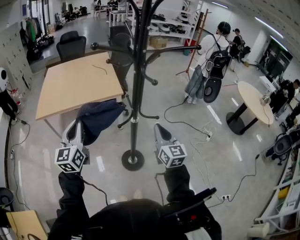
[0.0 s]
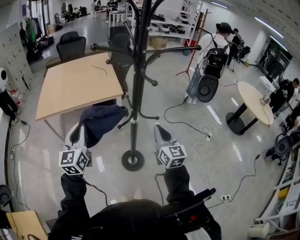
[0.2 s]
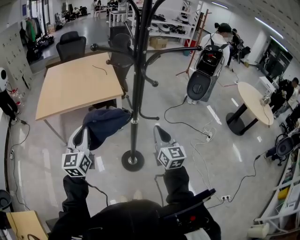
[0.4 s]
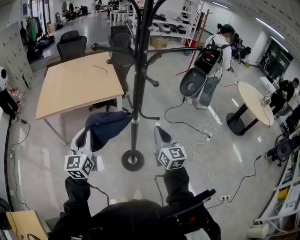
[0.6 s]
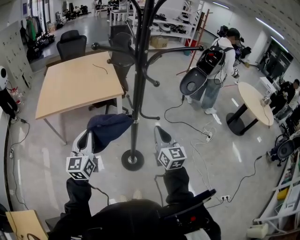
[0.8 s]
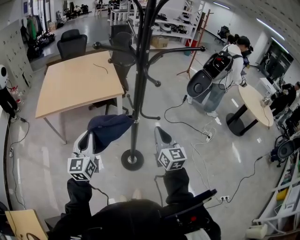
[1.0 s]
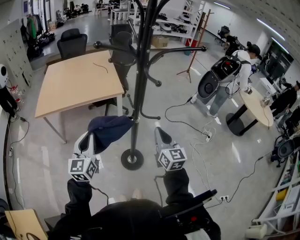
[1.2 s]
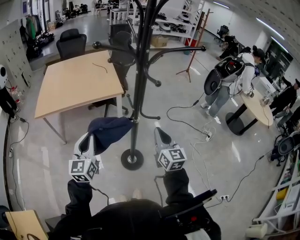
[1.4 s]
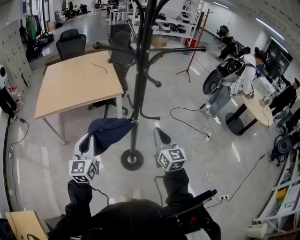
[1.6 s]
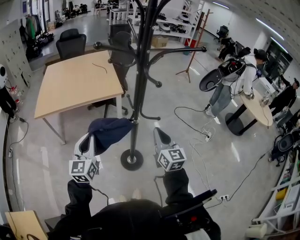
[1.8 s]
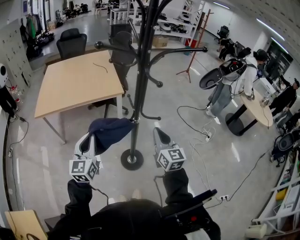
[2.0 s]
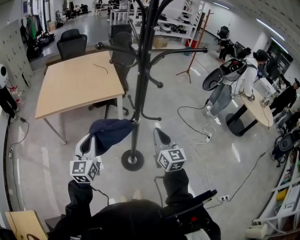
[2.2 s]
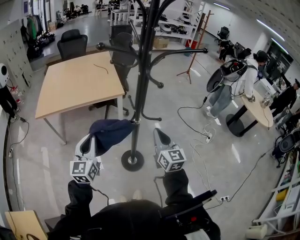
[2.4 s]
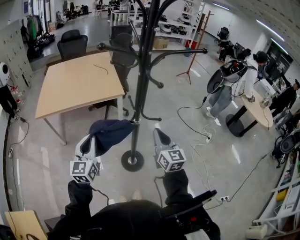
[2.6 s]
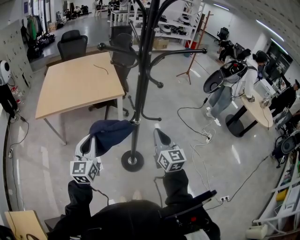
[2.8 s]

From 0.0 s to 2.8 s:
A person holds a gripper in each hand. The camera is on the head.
From 0.0 s to 1.4 s: The left gripper shifts approximately 5 cm downward.
From 1.4 s to 2.8 s: The two grippers keep their place.

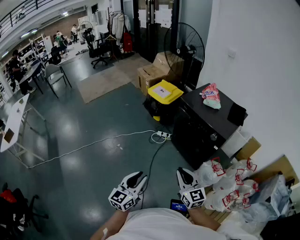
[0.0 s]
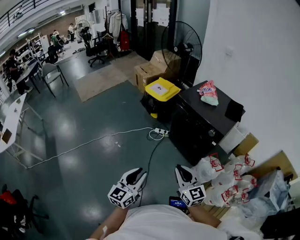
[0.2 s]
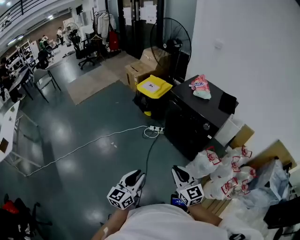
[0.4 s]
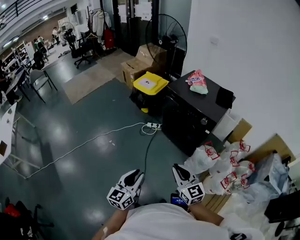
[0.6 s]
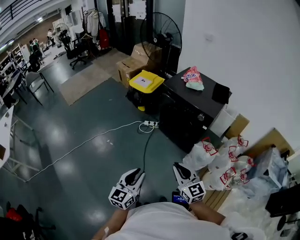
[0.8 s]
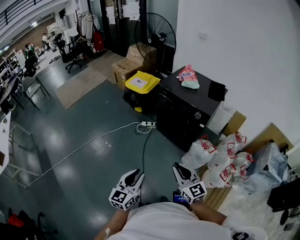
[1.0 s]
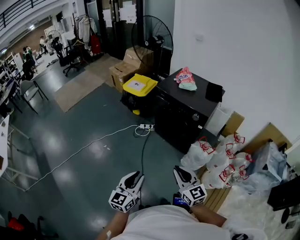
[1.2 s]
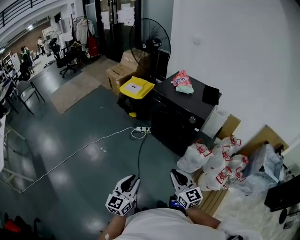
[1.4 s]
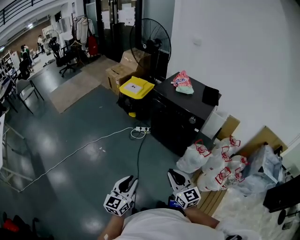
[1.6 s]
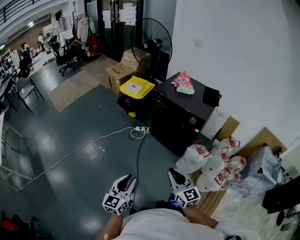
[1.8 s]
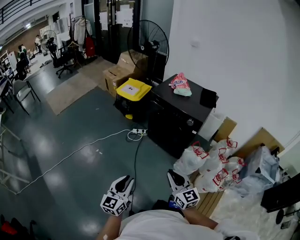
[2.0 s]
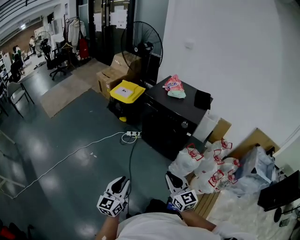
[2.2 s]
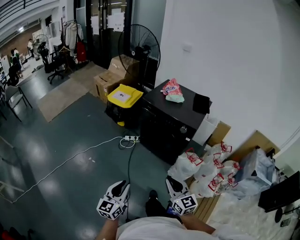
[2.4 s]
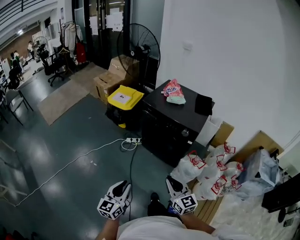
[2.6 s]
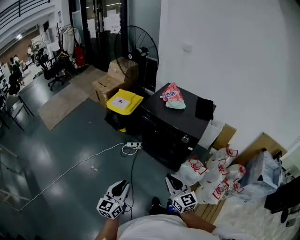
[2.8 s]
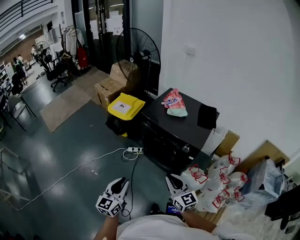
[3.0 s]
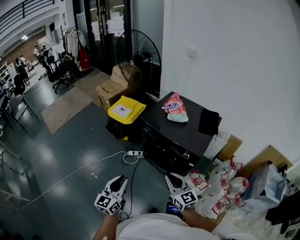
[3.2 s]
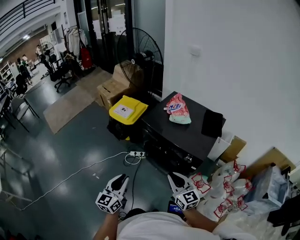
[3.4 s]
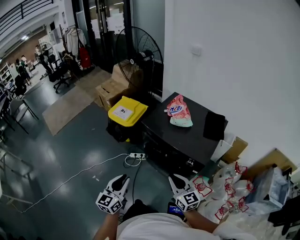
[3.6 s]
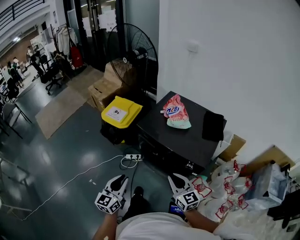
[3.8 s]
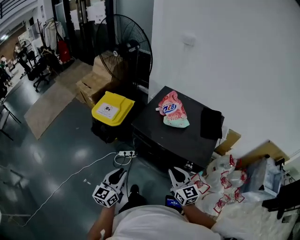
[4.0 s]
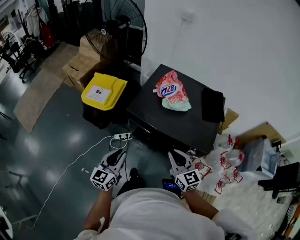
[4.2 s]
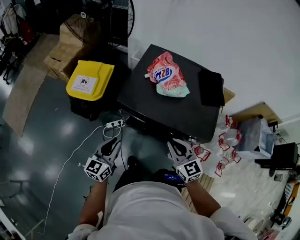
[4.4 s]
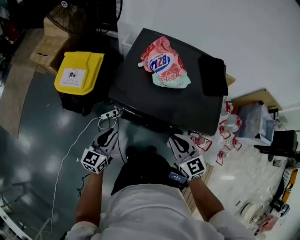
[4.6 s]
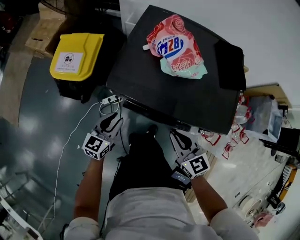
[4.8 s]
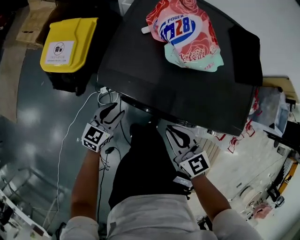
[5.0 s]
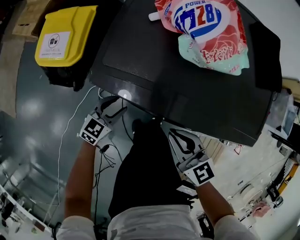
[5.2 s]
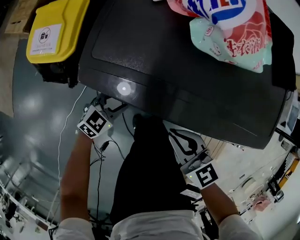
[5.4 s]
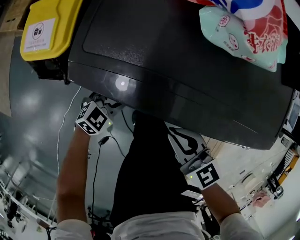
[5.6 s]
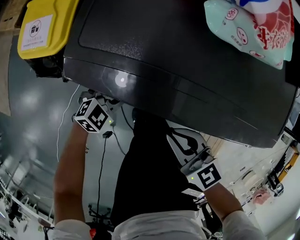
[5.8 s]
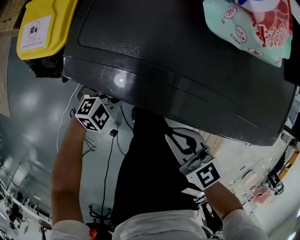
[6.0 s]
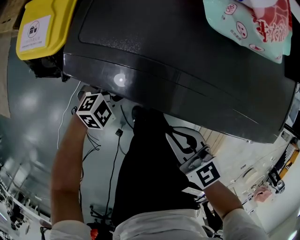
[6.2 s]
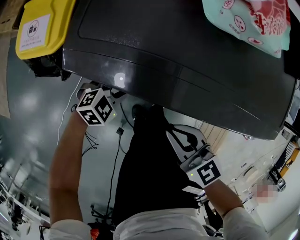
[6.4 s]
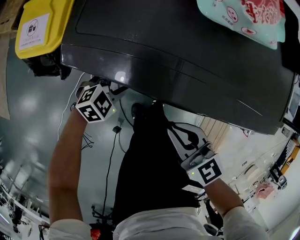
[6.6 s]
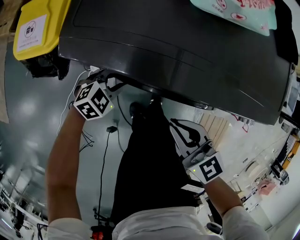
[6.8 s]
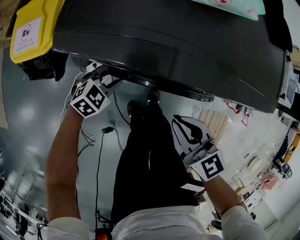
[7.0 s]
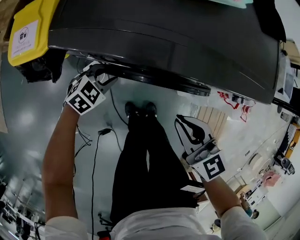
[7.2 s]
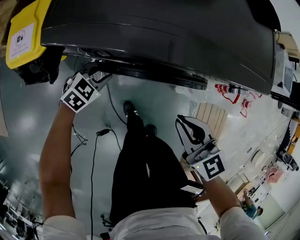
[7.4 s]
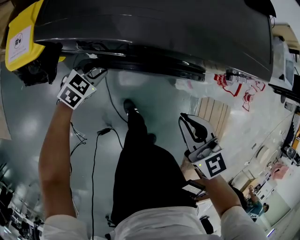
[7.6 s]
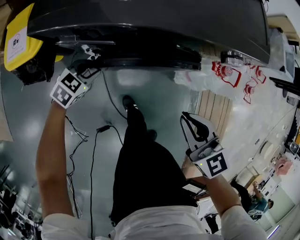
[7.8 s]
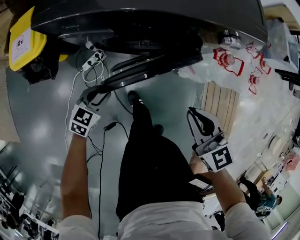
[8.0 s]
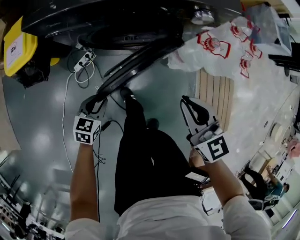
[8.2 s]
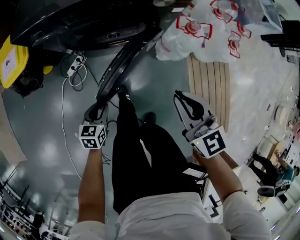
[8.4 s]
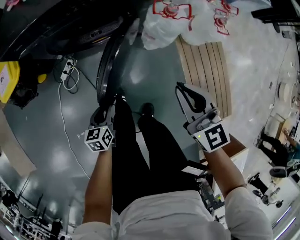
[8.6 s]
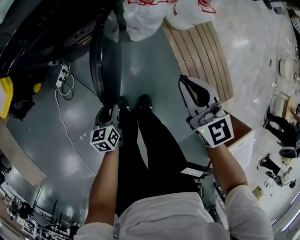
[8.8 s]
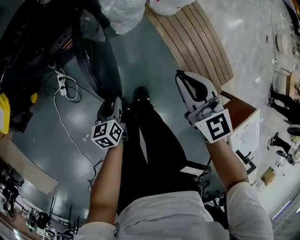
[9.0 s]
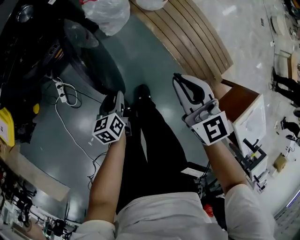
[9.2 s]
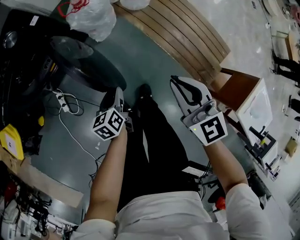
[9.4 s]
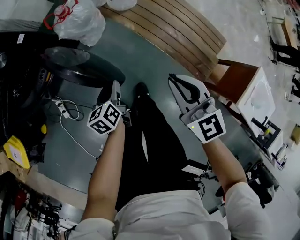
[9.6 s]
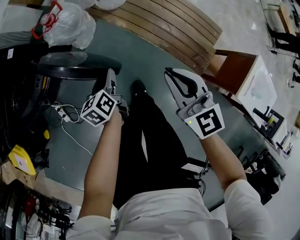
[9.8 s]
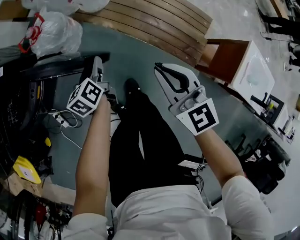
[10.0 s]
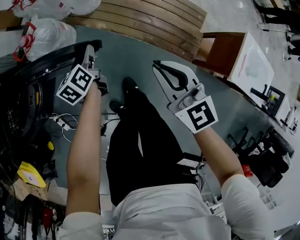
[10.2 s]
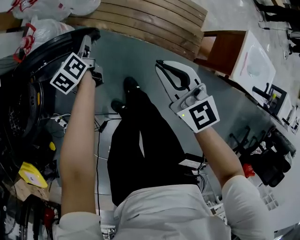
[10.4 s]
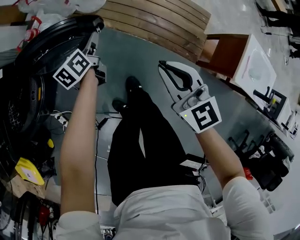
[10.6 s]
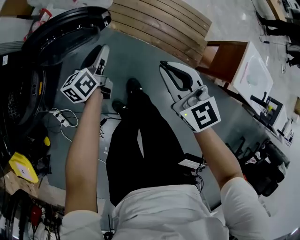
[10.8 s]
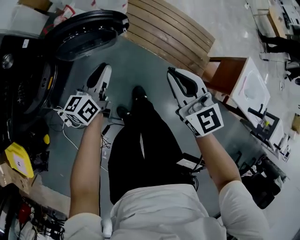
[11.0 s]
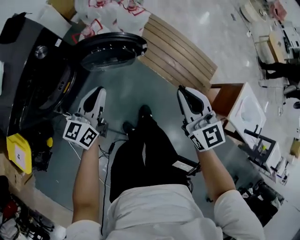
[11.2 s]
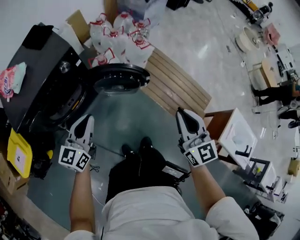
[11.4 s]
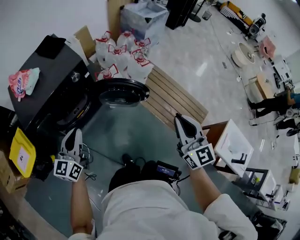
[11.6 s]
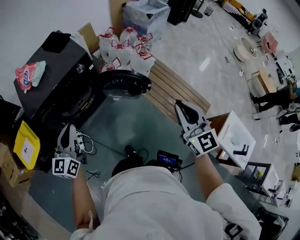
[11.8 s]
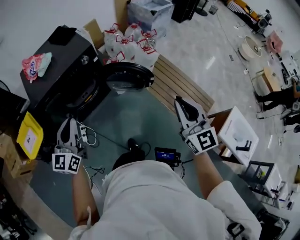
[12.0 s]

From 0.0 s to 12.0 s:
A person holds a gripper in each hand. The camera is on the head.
From 0.0 s to 1.6 s: The left gripper moves approximately 5 cm; the right gripper is displaced backward by some 10 cm.
From 1.6 s to 3.0 s: The grippers both shift forward by approximately 25 cm.
From 3.0 s to 4.4 s: The grippers both shift forward by about 35 cm. The left gripper swivels approximately 20 degrees.
From 4.4 s to 6.0 s: The left gripper heads downward, covering some 35 cm, and tilts its fingers roughly 30 degrees downward, while the right gripper heads downward, covering approximately 25 cm.
From 6.0 s to 7.6 s: The right gripper goes about 15 cm to the right and backward, and swivels some 20 degrees.
From 7.6 s to 9.0 s: Both grippers are carried to the right and backward, roughly 40 cm. The left gripper rotates some 40 degrees; the right gripper changes its angle by roughly 40 degrees.
From 9.0 s to 10.4 s: The left gripper changes place by roughly 35 cm, and rotates about 30 degrees; the right gripper moves about 25 cm, and changes its angle by some 30 degrees.
From 10.4 s to 12.0 s: The left gripper goes roughly 70 cm upward, backward and to the left, tips its fingers upward by roughly 30 degrees, and closes up; the right gripper travels upward and backward by roughly 40 cm, and changes its angle by some 30 degrees.

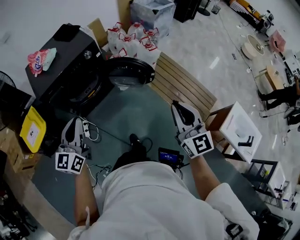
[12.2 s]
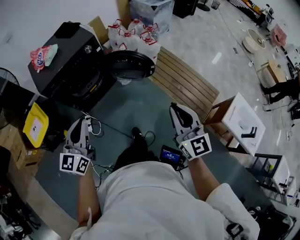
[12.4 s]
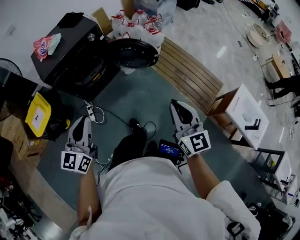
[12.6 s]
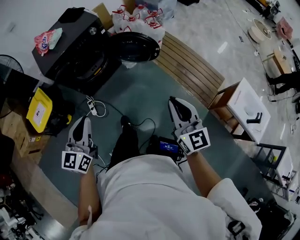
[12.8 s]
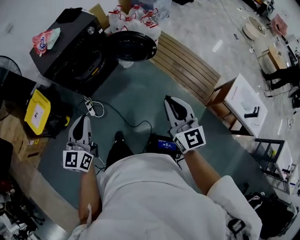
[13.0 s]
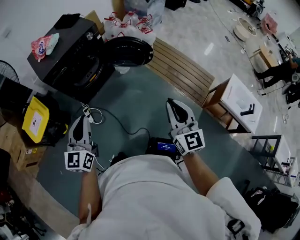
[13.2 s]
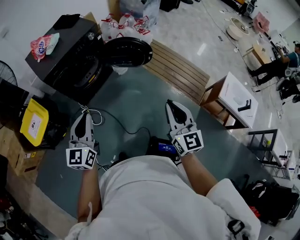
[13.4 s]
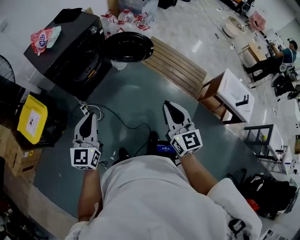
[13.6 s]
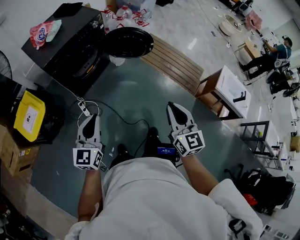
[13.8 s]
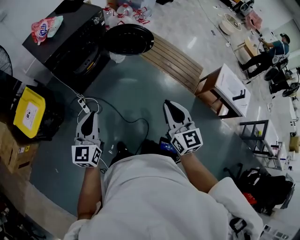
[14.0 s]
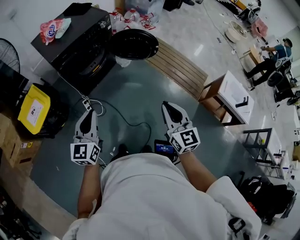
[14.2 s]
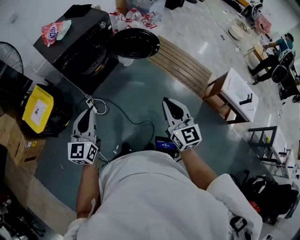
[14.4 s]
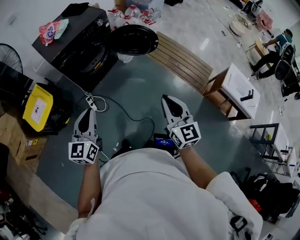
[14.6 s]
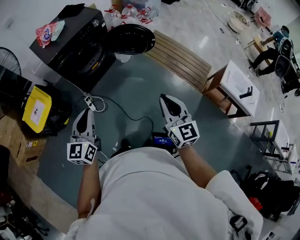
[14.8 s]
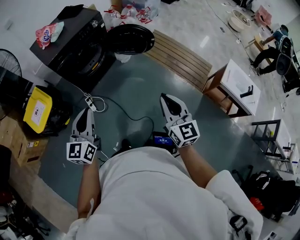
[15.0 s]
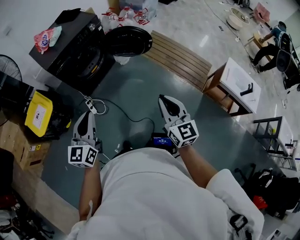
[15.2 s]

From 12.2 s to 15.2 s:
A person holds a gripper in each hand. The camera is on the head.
From 12.2 s to 13.8 s: Both grippers travel together backward and to the left, about 30 cm.
From 13.8 s to 15.2 s: The left gripper moves about 10 cm. Meanwhile the right gripper shifts by about 5 cm.

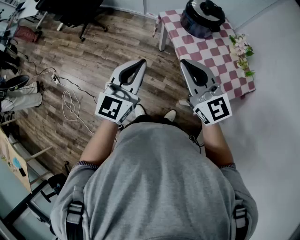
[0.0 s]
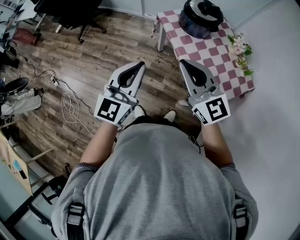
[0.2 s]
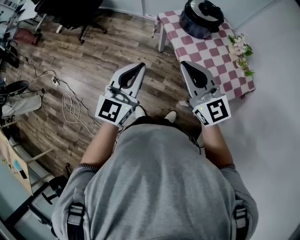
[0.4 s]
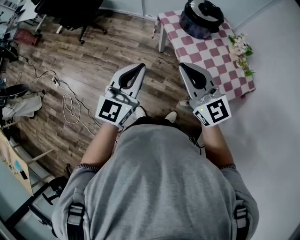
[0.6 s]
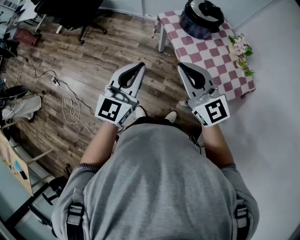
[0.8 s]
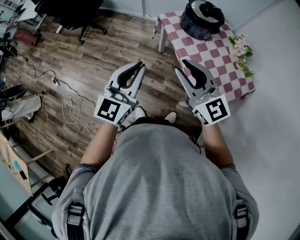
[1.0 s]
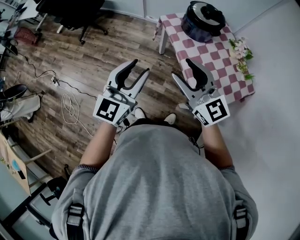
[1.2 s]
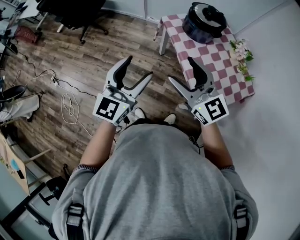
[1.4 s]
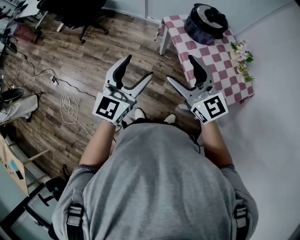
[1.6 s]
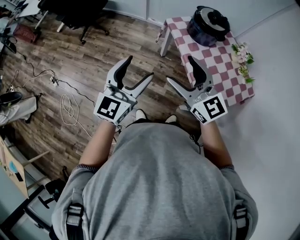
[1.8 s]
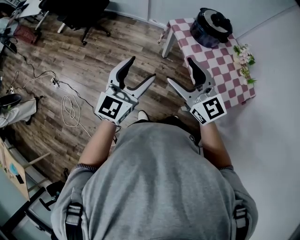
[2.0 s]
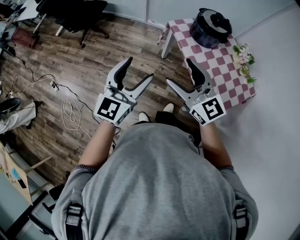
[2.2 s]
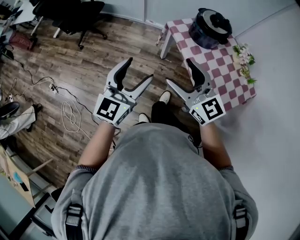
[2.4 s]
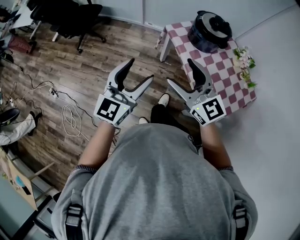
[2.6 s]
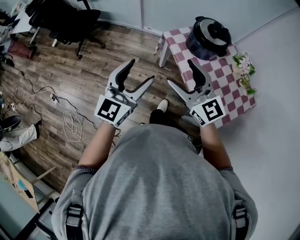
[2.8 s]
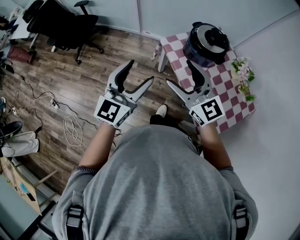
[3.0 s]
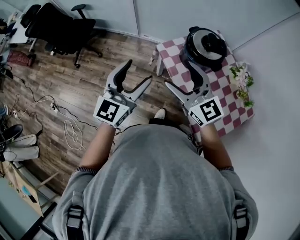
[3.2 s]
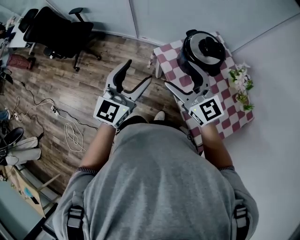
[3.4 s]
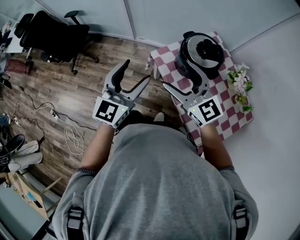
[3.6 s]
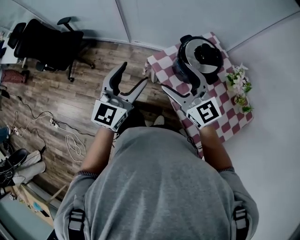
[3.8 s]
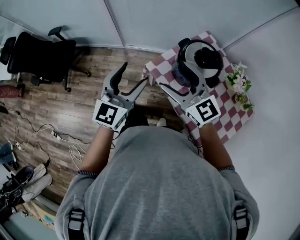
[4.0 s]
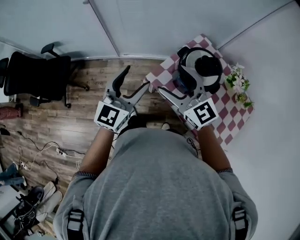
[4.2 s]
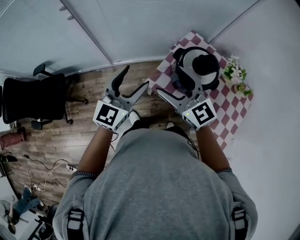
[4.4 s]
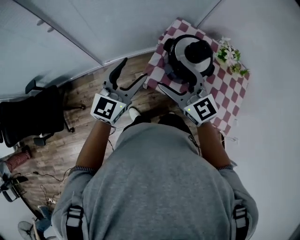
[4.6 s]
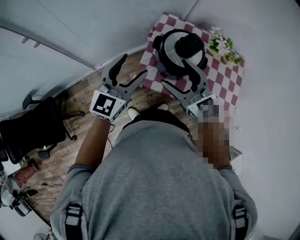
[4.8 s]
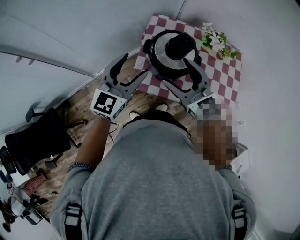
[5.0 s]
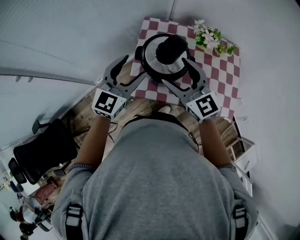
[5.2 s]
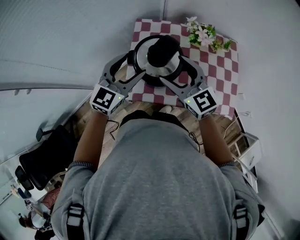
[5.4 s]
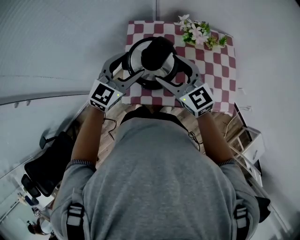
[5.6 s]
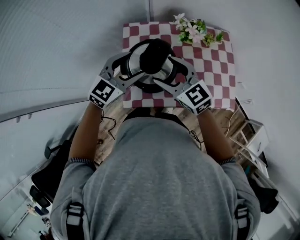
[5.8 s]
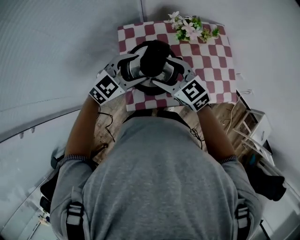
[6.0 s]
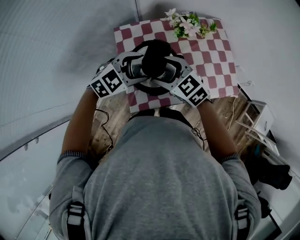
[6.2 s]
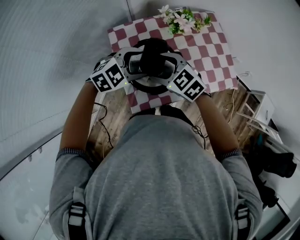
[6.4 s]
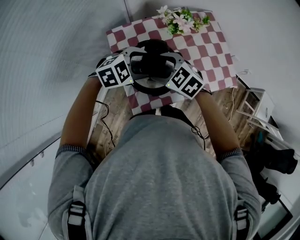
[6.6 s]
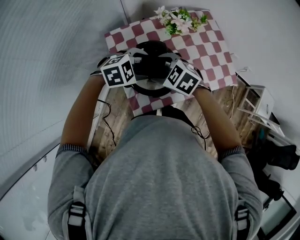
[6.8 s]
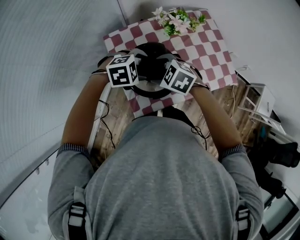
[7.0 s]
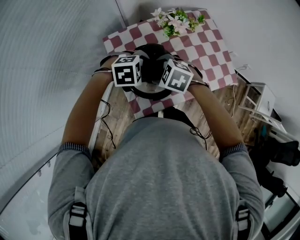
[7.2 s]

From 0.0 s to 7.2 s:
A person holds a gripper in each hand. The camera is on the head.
From 0.0 s to 1.4 s: The left gripper opens. Meanwhile the right gripper opens.
From 1.4 s to 2.8 s: The grippers both shift forward by about 15 cm.
From 2.8 s to 4.4 s: The left gripper moves some 40 cm, and rotates approximately 30 degrees. The right gripper moves approximately 35 cm, and changes its angle by some 20 degrees.
From 4.4 s to 5.8 s: The right gripper moves approximately 25 cm, and turns by about 40 degrees. Meanwhile the left gripper ends up approximately 30 cm from where it was, and rotates roughly 60 degrees.
From 5.8 s to 7.2 s: Both grippers move downward, roughly 10 cm. The left gripper angles its fingers downward, by about 40 degrees; the right gripper angles its fingers downward, by roughly 40 degrees.
